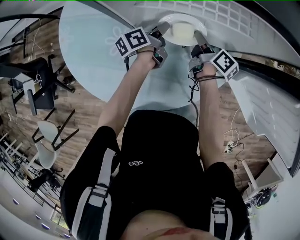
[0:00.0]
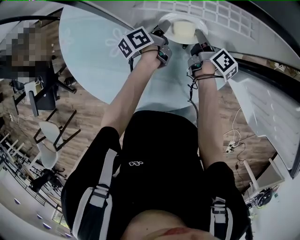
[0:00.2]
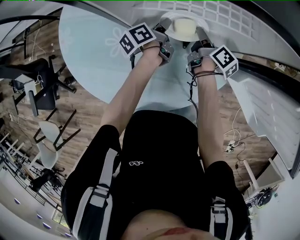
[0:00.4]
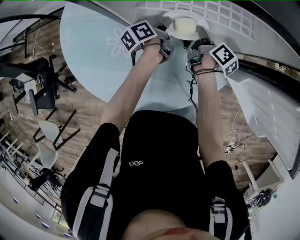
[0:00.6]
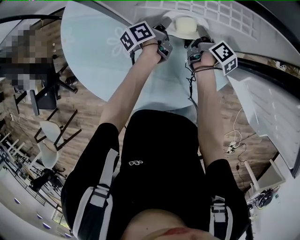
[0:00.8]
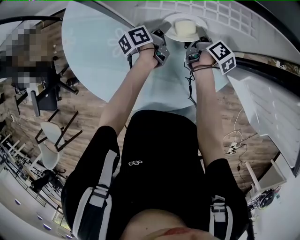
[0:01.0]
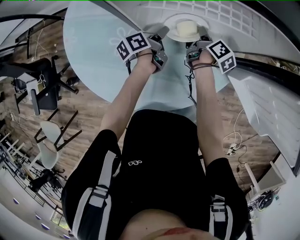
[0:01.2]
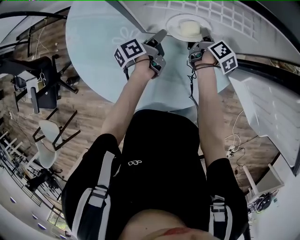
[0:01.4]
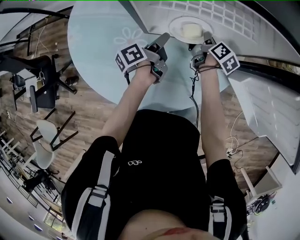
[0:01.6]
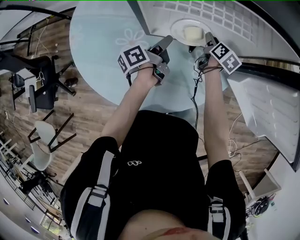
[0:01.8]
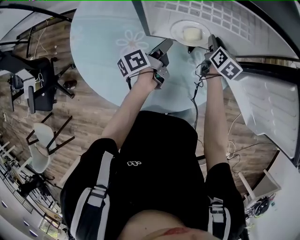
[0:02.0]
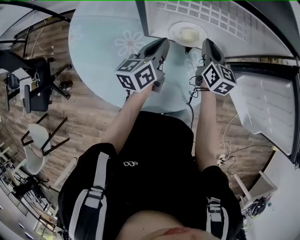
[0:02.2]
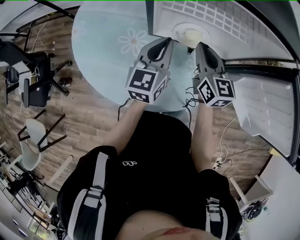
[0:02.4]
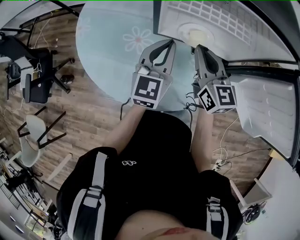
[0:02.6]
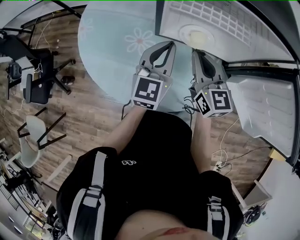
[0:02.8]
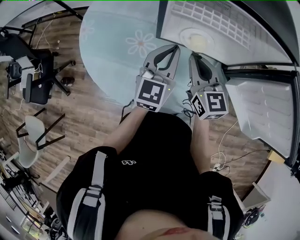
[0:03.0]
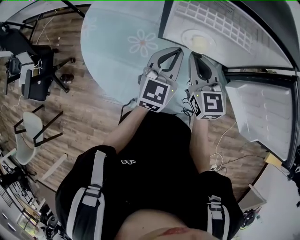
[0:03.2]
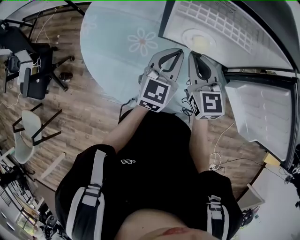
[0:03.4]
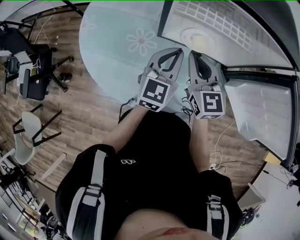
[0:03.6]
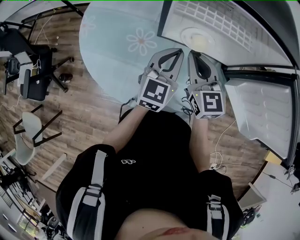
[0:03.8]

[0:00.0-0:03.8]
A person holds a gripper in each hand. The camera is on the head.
0:00.0 to 0:01.2: The left gripper opens.
0:01.2 to 0:02.6: The right gripper is displaced upward, backward and to the left by approximately 25 cm, rotates around the line of its fingers by about 60 degrees, counterclockwise from behind, and opens, then closes once more. The left gripper moves upward and backward, some 25 cm, rolls clockwise, seen from behind, by approximately 70 degrees, and closes up.
0:02.6 to 0:03.8: The grippers move only a little.

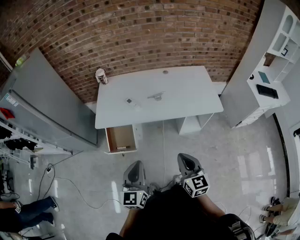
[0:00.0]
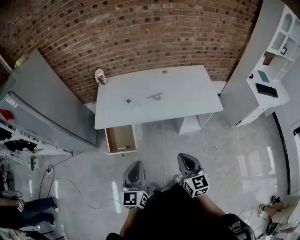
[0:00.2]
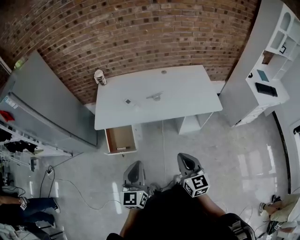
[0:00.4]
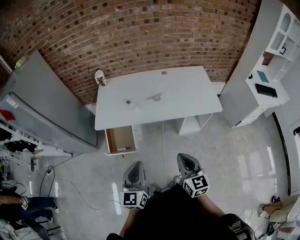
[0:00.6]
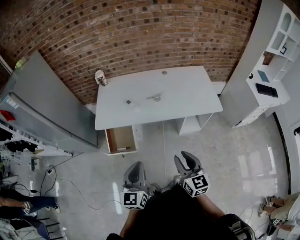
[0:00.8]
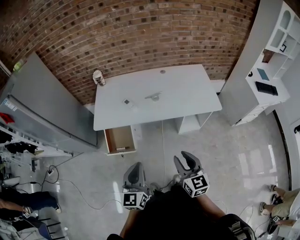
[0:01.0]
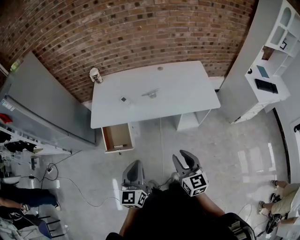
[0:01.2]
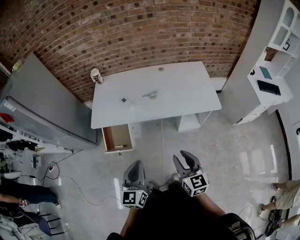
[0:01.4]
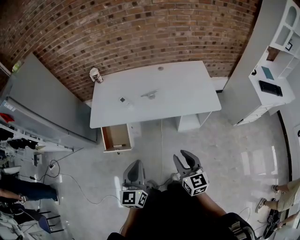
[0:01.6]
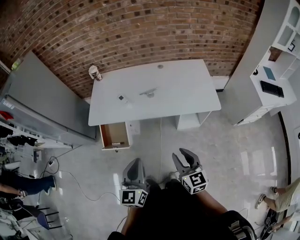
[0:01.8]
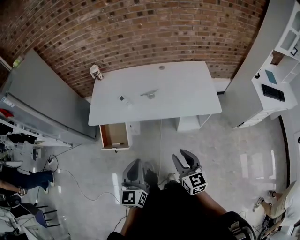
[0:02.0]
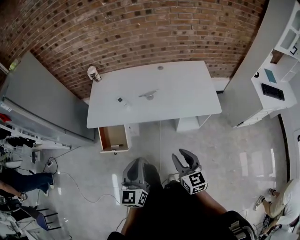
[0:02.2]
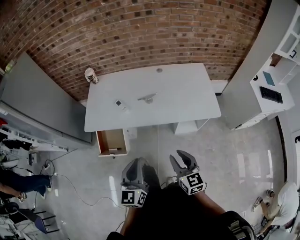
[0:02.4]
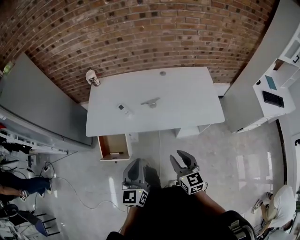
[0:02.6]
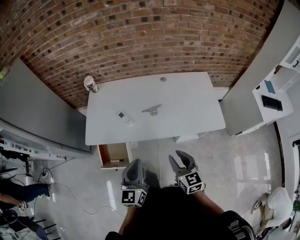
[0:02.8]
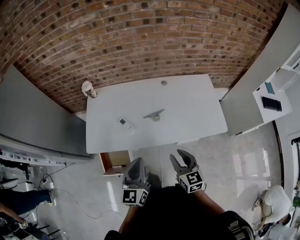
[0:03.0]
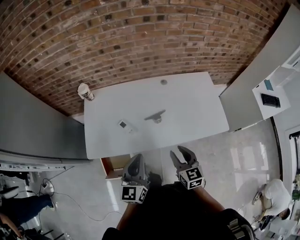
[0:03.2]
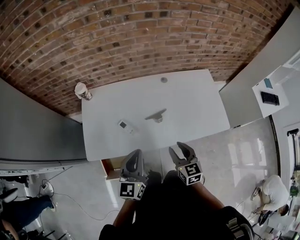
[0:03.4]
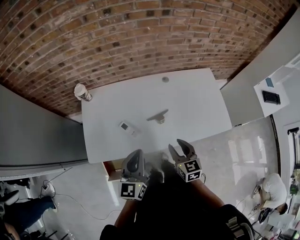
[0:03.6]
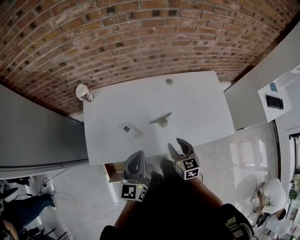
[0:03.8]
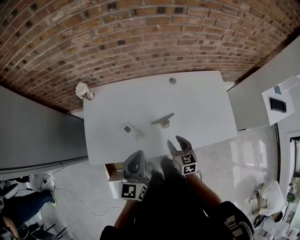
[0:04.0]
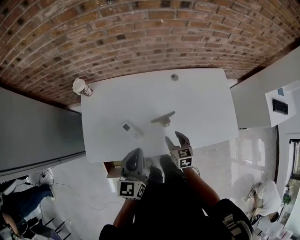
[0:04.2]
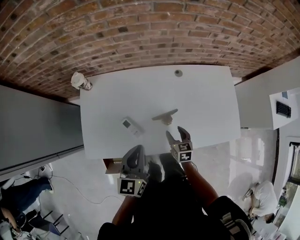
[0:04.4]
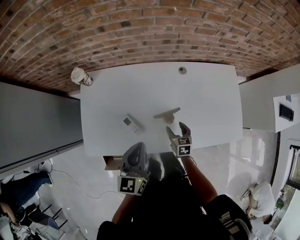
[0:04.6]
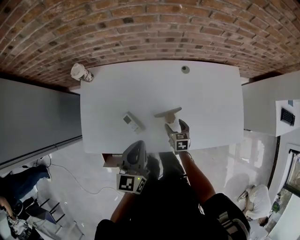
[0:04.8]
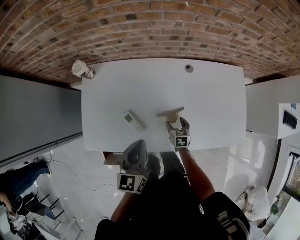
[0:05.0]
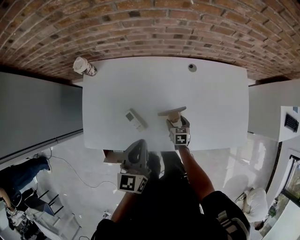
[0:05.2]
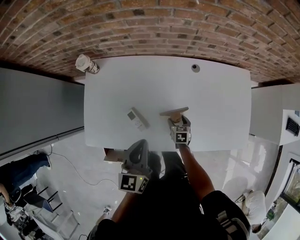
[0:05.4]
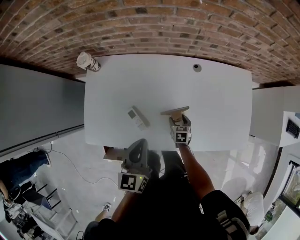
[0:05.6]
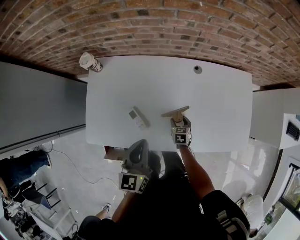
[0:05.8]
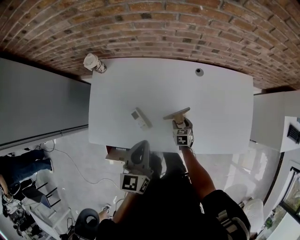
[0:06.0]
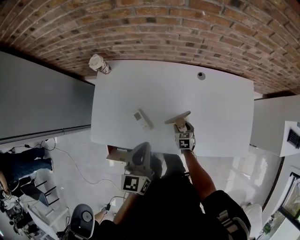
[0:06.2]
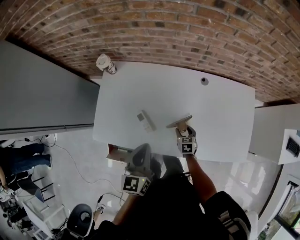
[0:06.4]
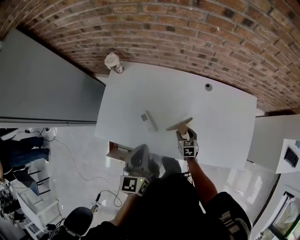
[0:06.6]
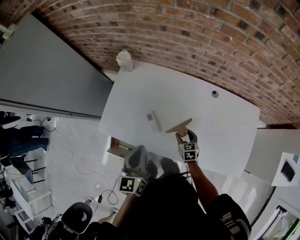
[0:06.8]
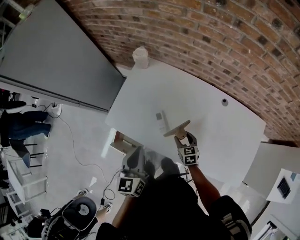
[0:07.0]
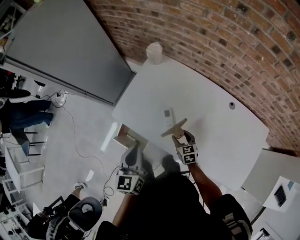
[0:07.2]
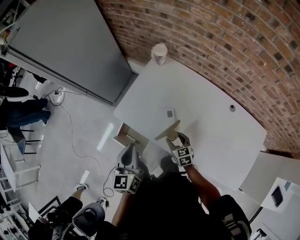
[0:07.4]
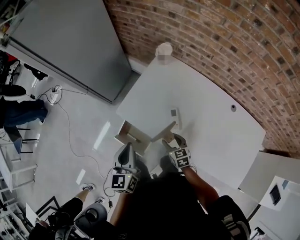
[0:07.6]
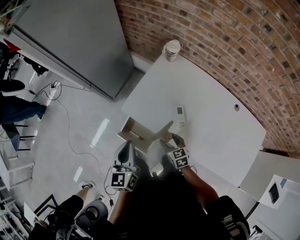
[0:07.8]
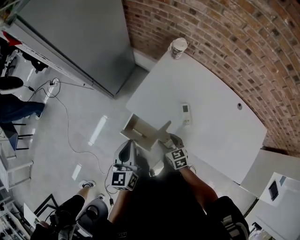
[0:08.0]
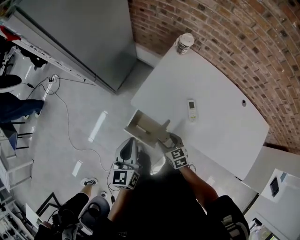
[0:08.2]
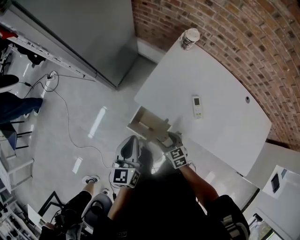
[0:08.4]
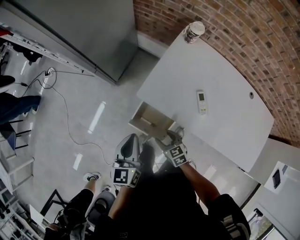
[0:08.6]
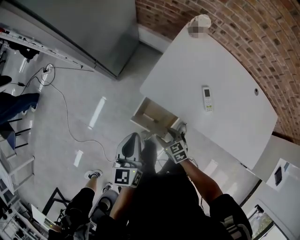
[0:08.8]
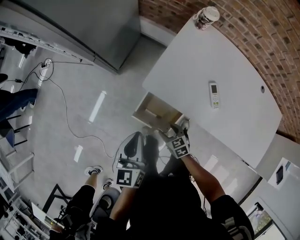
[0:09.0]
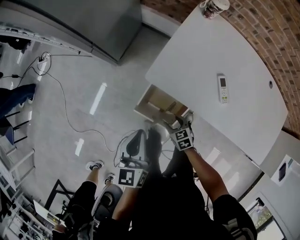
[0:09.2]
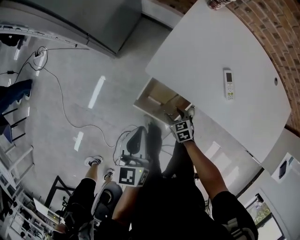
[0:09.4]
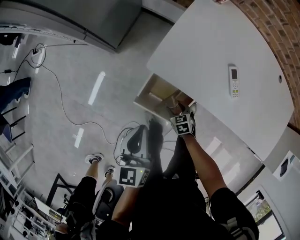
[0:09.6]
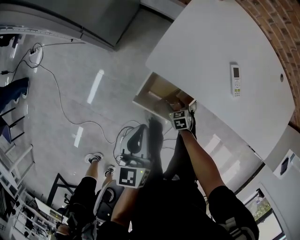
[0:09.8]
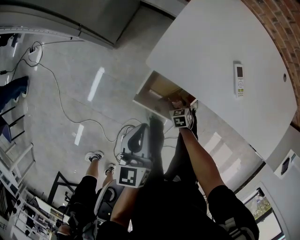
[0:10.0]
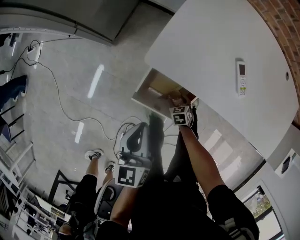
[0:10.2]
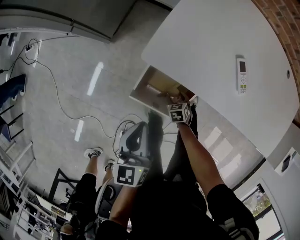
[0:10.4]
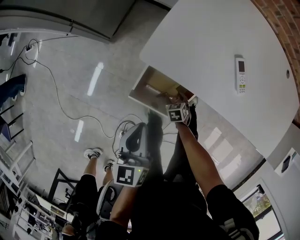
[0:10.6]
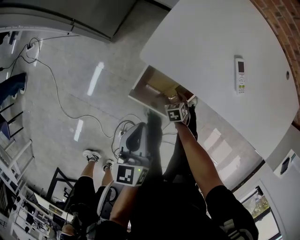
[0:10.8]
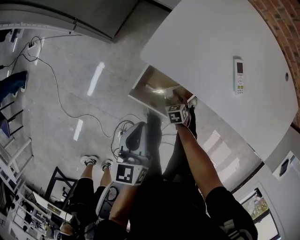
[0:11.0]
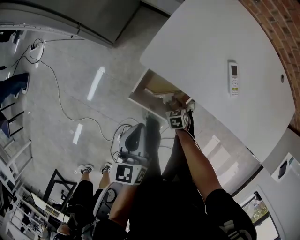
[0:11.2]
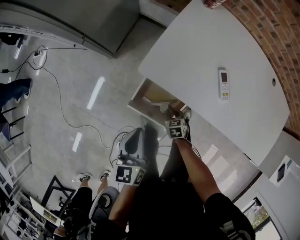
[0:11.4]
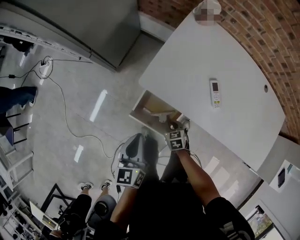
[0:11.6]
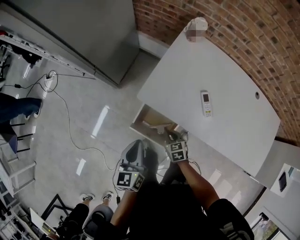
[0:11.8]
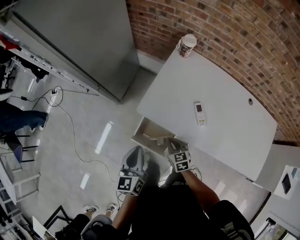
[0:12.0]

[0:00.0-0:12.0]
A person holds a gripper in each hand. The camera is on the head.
0:00.0 to 0:01.6: Both grippers travel together to the right, roughly 10 cm. The right gripper opens its fingers.
0:01.6 to 0:03.0: Both grippers travel together forward, about 25 cm.
0:03.0 to 0:04.4: The right gripper heads forward and downward, covering roughly 30 cm, and rotates approximately 20 degrees. The left gripper shifts some 20 cm forward.
0:04.4 to 0:06.0: The right gripper heads downward, covering about 15 cm.
0:06.0 to 0:07.6: The left gripper changes place by roughly 25 cm, and swivels approximately 40 degrees, while the right gripper shifts by some 30 cm, and turns by roughly 50 degrees.
0:07.6 to 0:09.0: The two grippers go some 25 cm to the left and downward.
0:09.0 to 0:10.4: The right gripper shifts roughly 25 cm downward, and turns by about 30 degrees, while the left gripper goes some 15 cm downward.
0:10.4 to 0:12.0: The left gripper shifts about 15 cm upward; the right gripper travels upward by some 30 cm, turns by roughly 30 degrees, and closes its fingers.

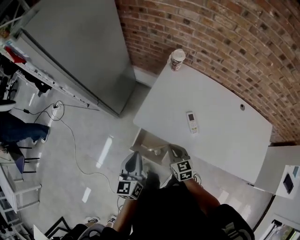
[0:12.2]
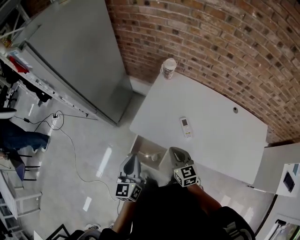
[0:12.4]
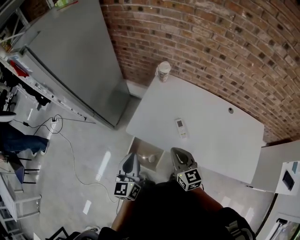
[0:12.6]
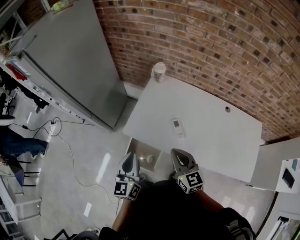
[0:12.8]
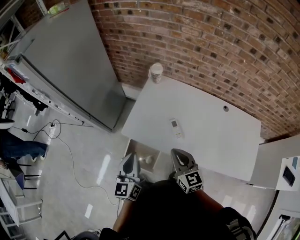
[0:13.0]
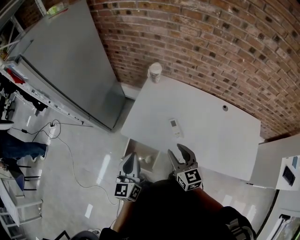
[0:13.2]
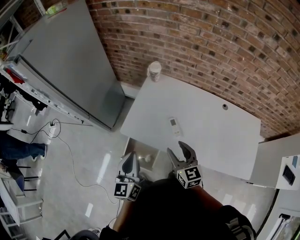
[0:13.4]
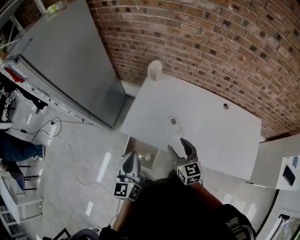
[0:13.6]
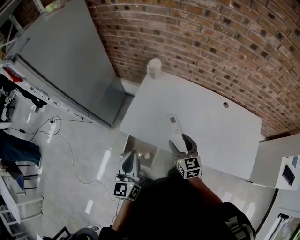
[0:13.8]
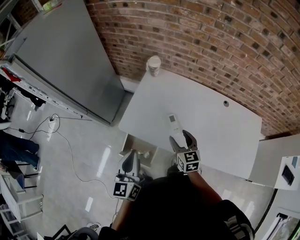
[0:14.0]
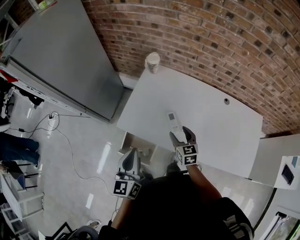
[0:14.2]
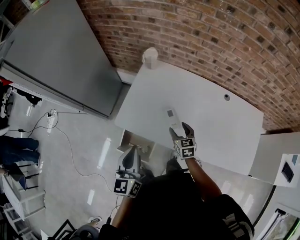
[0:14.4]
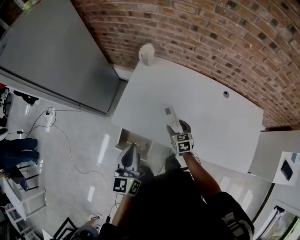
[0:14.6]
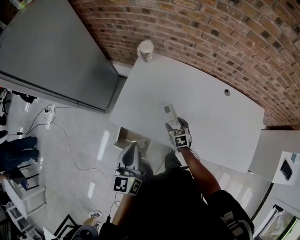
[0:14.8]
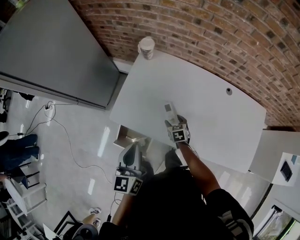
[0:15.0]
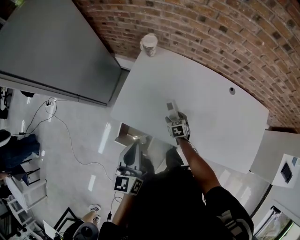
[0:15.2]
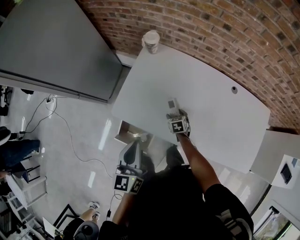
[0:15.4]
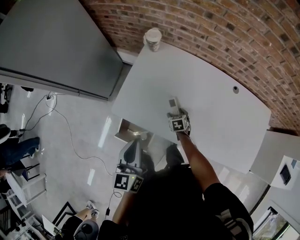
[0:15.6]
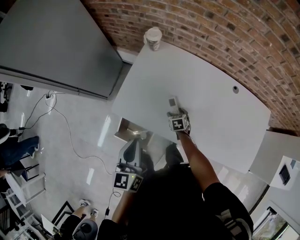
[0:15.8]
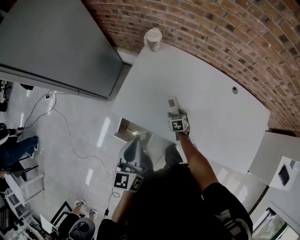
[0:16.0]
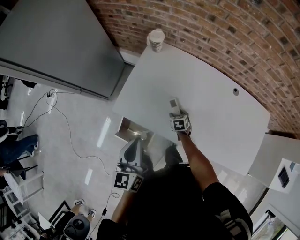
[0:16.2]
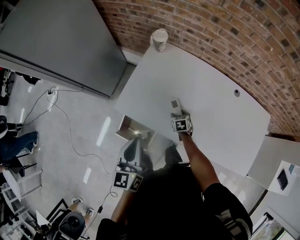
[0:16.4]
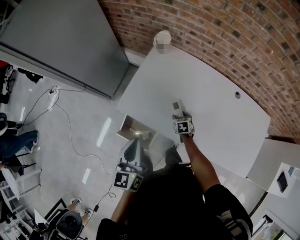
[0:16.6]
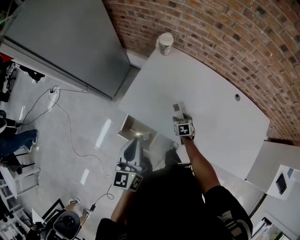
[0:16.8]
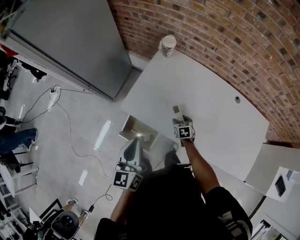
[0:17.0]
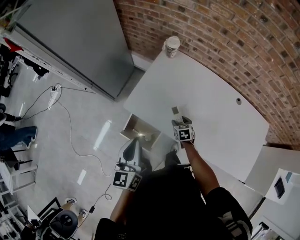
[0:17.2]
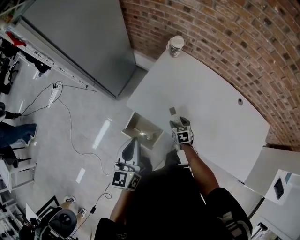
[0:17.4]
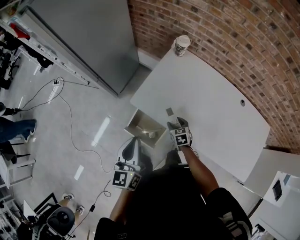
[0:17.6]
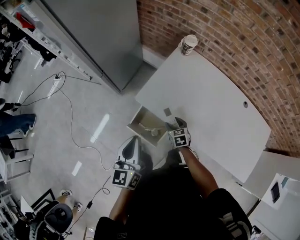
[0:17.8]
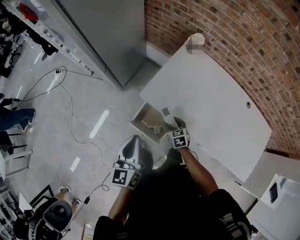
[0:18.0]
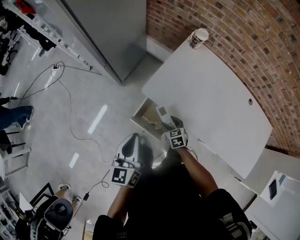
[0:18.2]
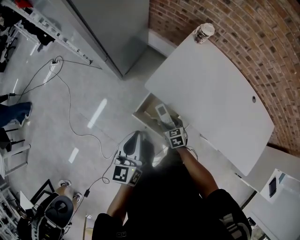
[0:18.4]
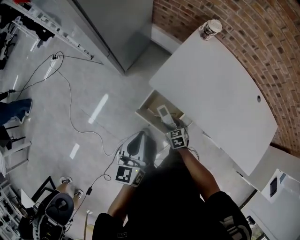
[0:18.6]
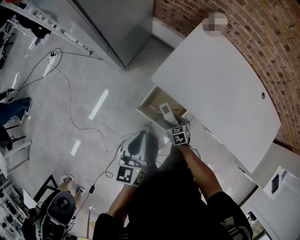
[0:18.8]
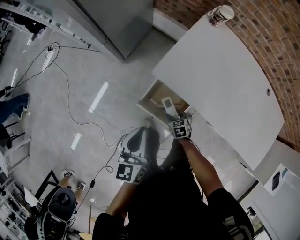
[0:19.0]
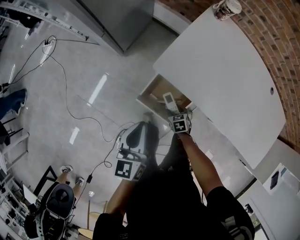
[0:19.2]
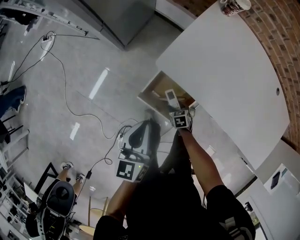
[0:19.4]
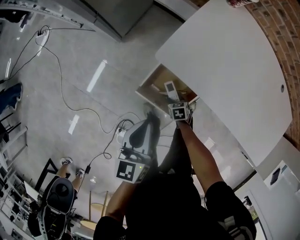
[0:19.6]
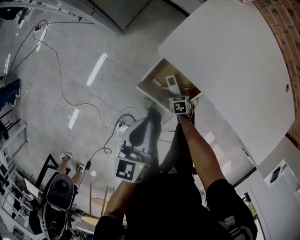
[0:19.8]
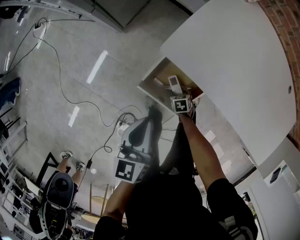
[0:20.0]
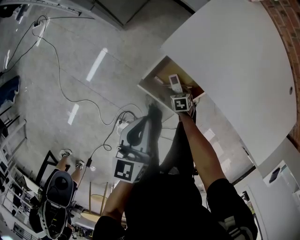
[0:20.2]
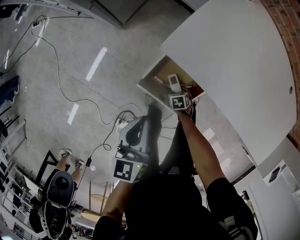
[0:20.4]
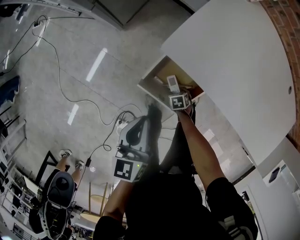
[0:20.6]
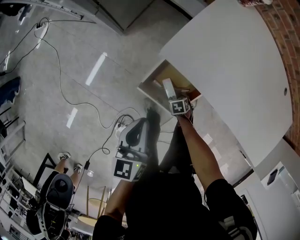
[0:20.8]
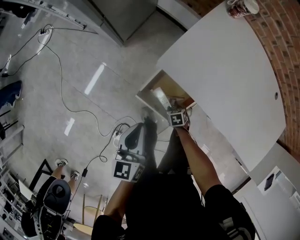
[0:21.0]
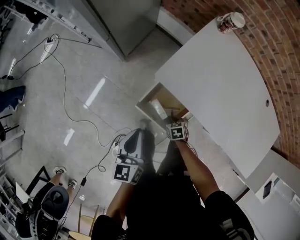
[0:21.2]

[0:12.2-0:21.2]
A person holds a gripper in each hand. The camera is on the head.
0:12.2 to 0:13.8: The right gripper goes about 20 cm to the right and upward, and opens. The left gripper heads upward and to the right, covering some 15 cm.
0:13.8 to 0:15.2: The right gripper moves downward, roughly 30 cm, and points its fingers some 30 degrees further downward, while the left gripper heads to the right and downward, covering approximately 10 cm.
0:15.2 to 0:16.6: The grippers move only a little.
0:16.6 to 0:18.2: The grippers both shift to the left by about 20 cm. The right gripper swivels about 20 degrees.
0:18.2 to 0:19.8: The right gripper shifts roughly 30 cm downward, and swivels approximately 20 degrees; the left gripper heads downward, covering about 20 cm.
0:19.8 to 0:21.2: The right gripper travels upward by roughly 10 cm, and closes its fingers; the left gripper moves approximately 5 cm.
